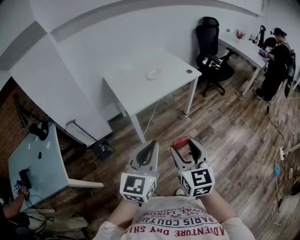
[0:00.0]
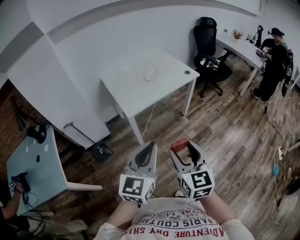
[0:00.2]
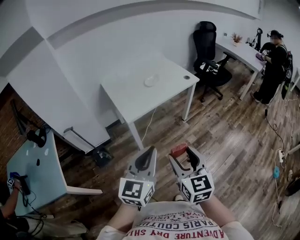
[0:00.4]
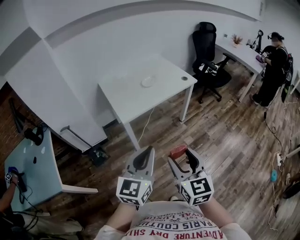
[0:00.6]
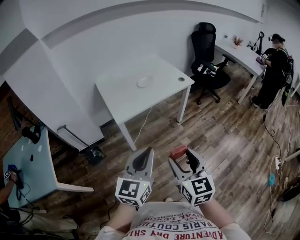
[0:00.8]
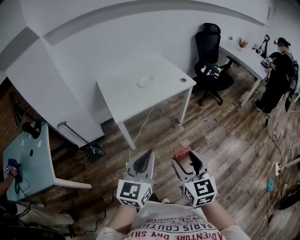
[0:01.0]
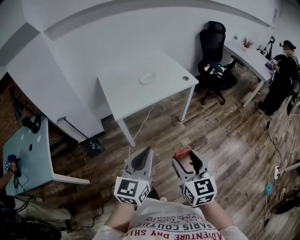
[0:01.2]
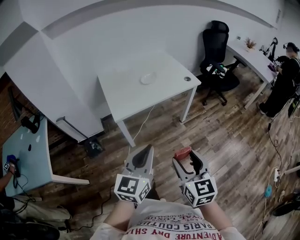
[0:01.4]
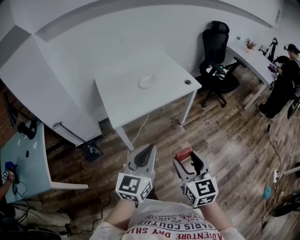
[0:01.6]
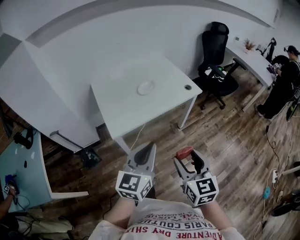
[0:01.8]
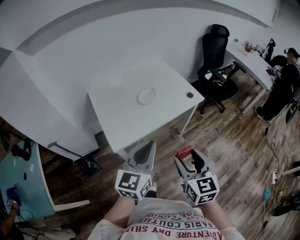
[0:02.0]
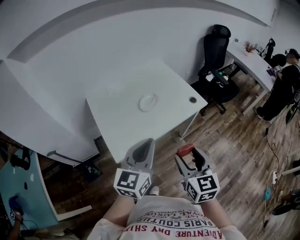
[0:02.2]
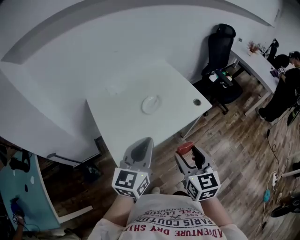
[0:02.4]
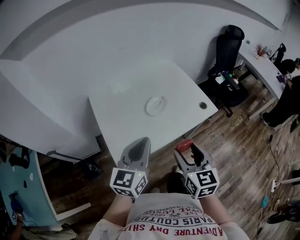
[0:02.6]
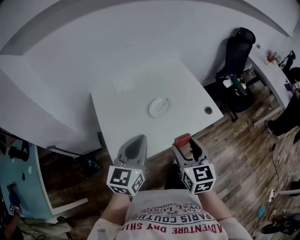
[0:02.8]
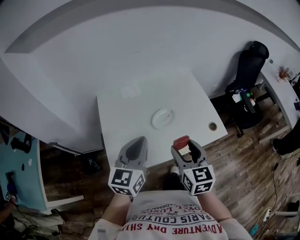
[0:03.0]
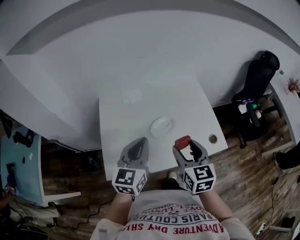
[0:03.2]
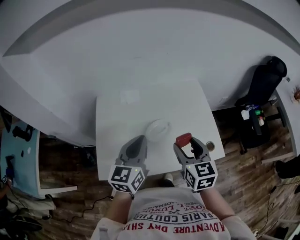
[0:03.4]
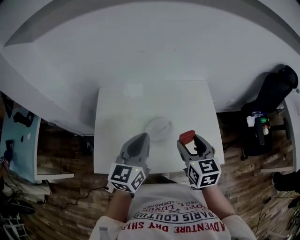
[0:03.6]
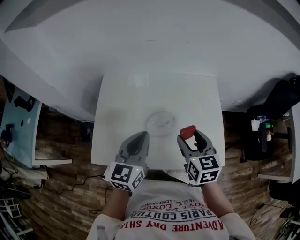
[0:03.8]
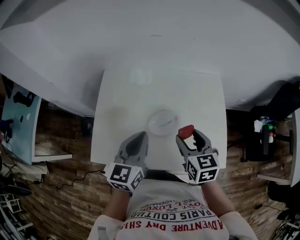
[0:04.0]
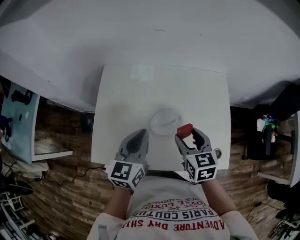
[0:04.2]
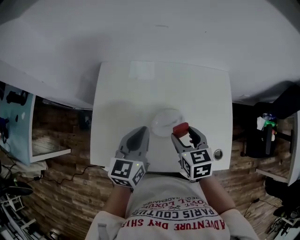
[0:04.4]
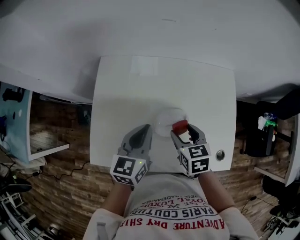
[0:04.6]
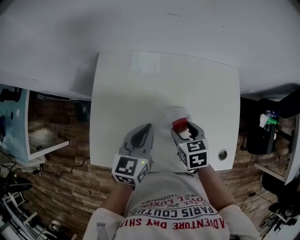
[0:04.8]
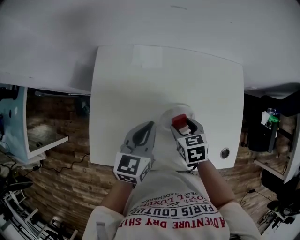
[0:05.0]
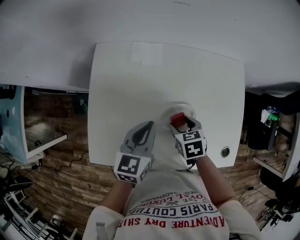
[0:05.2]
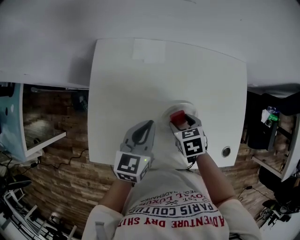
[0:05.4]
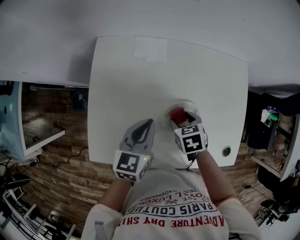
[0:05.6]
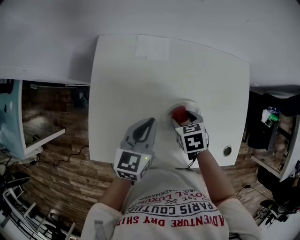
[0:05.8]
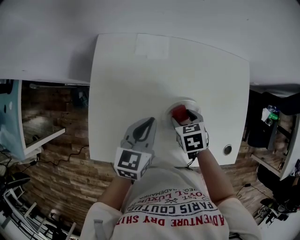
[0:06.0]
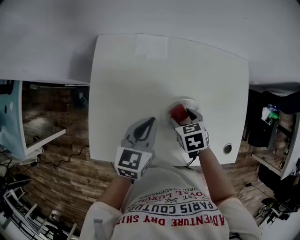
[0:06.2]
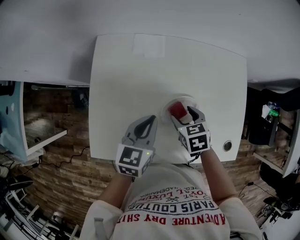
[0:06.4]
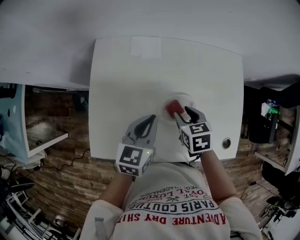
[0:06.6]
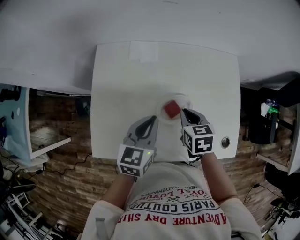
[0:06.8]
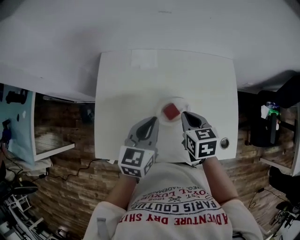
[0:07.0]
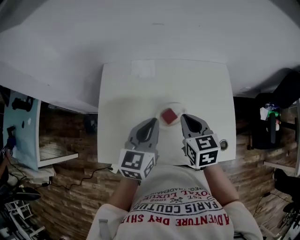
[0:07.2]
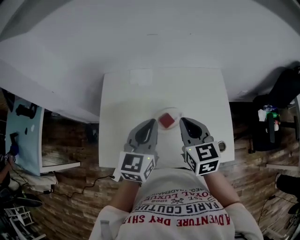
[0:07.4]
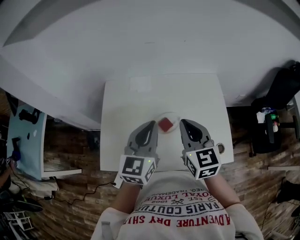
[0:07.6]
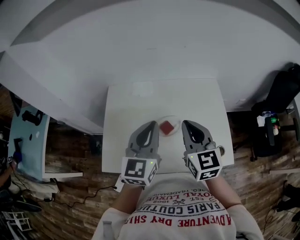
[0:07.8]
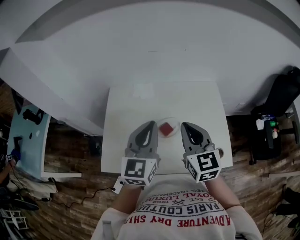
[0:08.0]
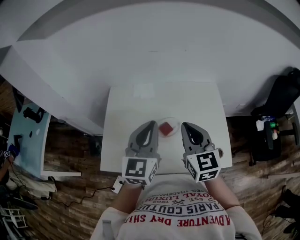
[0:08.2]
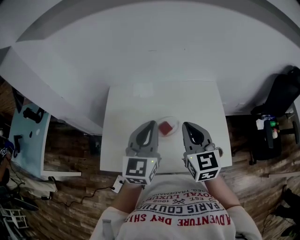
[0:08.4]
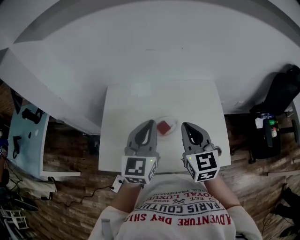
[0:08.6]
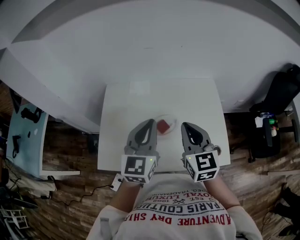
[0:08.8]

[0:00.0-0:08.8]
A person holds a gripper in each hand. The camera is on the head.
0:00.0 to 0:01.4: The left gripper travels forward and to the right by approximately 15 cm. Meanwhile the right gripper moves to the right and forward, approximately 15 cm.
0:01.4 to 0:03.0: The two grippers travel together, forward, some 50 cm.
0:03.0 to 0:04.4: Both grippers travel together forward and downward, some 20 cm. The left gripper turns by about 30 degrees; the right gripper swivels roughly 30 degrees.
0:04.4 to 0:05.8: The right gripper goes approximately 15 cm downward, and swivels approximately 30 degrees. The left gripper goes approximately 10 cm downward.
0:05.8 to 0:07.4: The left gripper is displaced upward and to the right by about 15 cm, and turns by some 20 degrees. The right gripper is displaced upward by about 25 cm, angles its fingers upward, by approximately 40 degrees, and closes its fingers.
0:07.4 to 0:08.8: The left gripper ends up about 5 cm from where it was, while the right gripper changes place by some 5 cm.

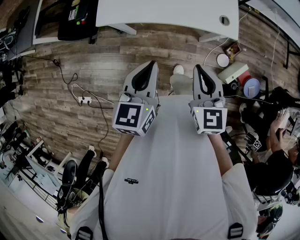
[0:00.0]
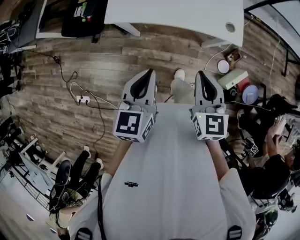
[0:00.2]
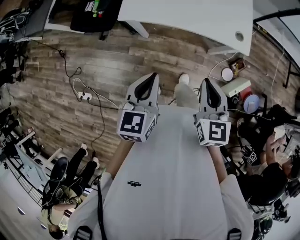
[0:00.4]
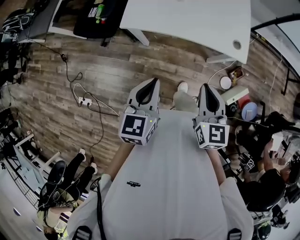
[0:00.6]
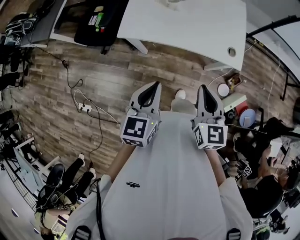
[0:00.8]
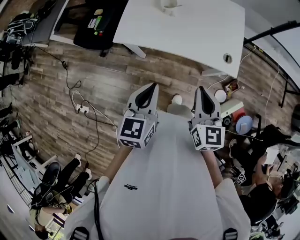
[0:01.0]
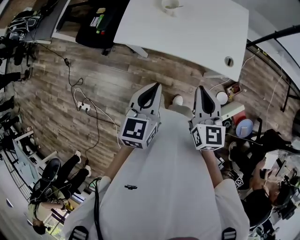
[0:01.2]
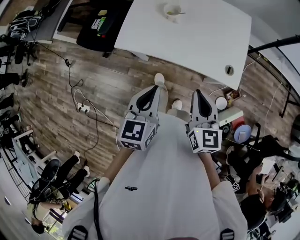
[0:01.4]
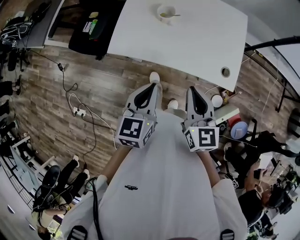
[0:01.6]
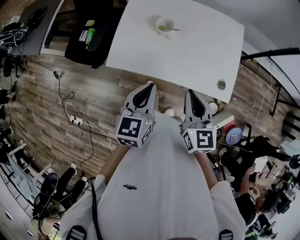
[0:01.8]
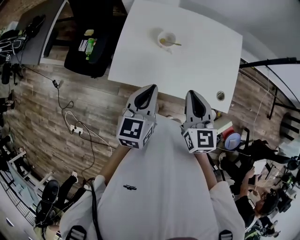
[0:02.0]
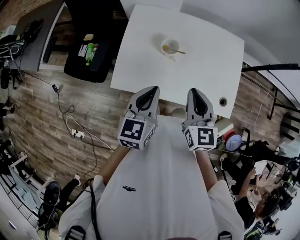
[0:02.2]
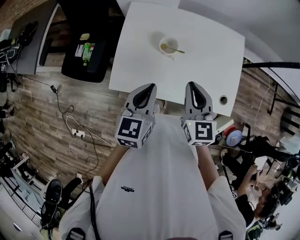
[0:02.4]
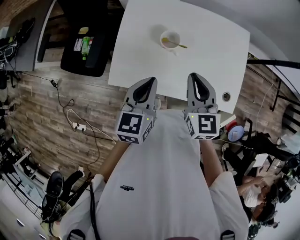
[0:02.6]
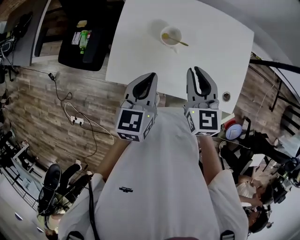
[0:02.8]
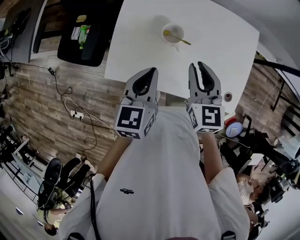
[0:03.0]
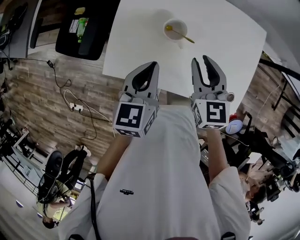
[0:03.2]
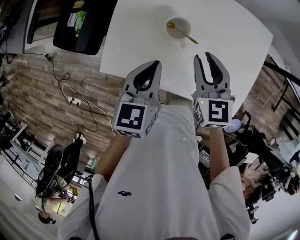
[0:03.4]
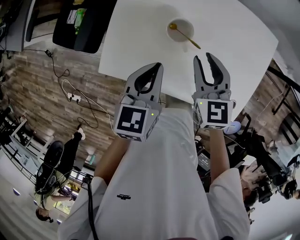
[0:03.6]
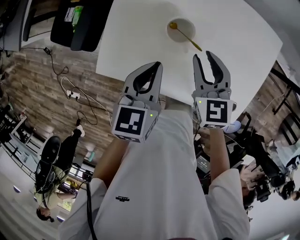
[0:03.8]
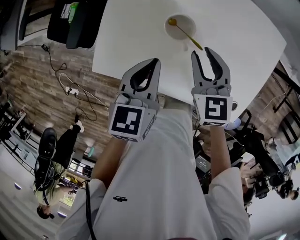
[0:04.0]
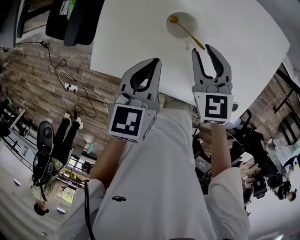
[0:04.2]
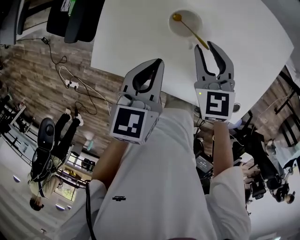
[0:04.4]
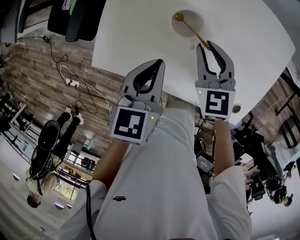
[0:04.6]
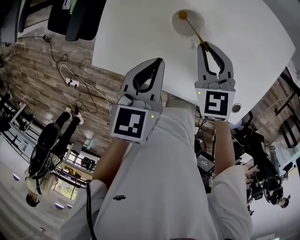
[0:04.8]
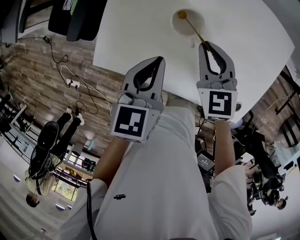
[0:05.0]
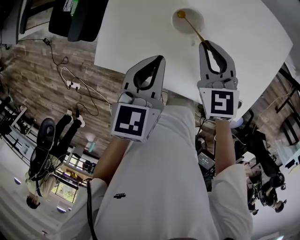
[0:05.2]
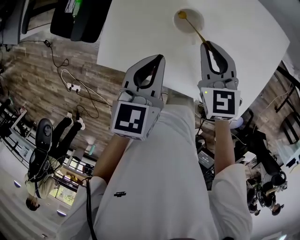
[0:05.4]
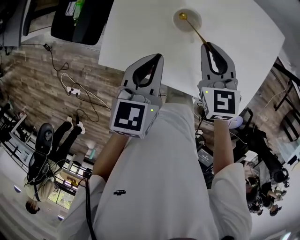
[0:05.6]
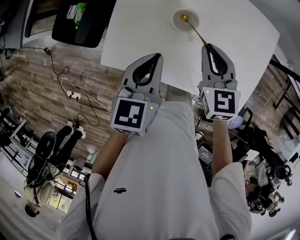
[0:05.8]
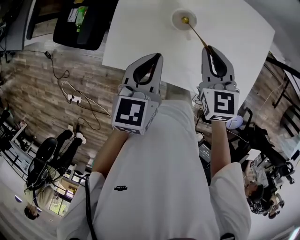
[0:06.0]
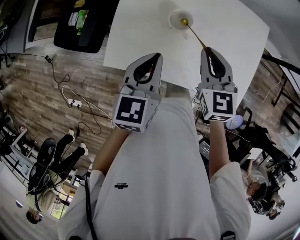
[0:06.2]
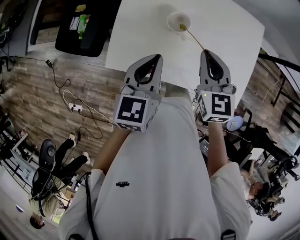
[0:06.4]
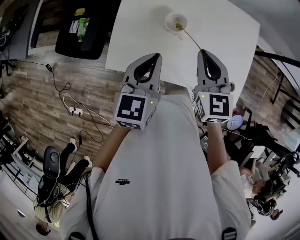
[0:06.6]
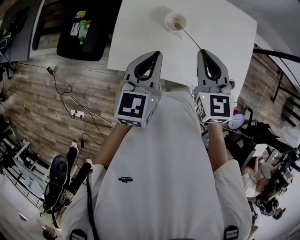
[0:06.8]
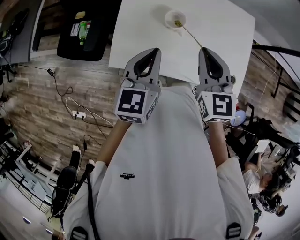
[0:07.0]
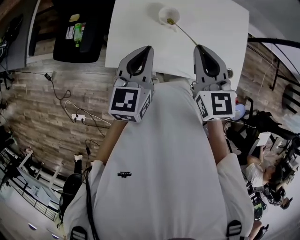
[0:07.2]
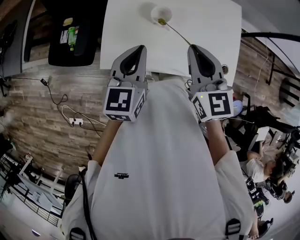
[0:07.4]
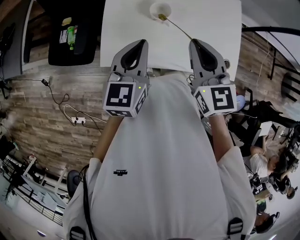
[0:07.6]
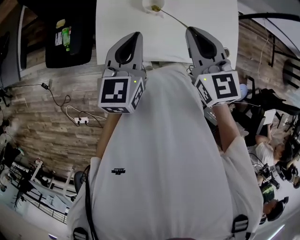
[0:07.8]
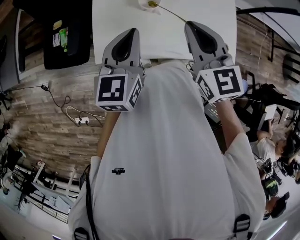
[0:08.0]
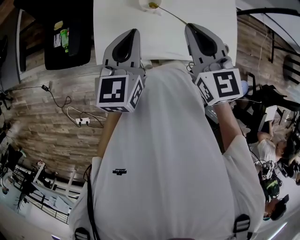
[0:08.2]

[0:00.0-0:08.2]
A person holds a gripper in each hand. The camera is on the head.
0:00.0 to 0:01.6: The two grippers go roughly 10 cm forward.
0:01.6 to 0:03.2: The two grippers go about 25 cm forward. The right gripper opens.
0:03.2 to 0:05.0: Both grippers move downward, about 10 cm.
0:05.0 to 0:06.6: The right gripper moves upward and backward, approximately 15 cm; the left gripper is displaced upward by about 10 cm.
0:06.6 to 0:08.2: The right gripper goes roughly 5 cm upward.

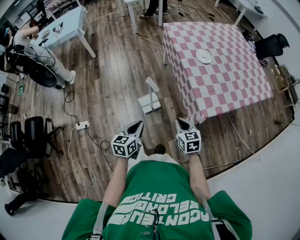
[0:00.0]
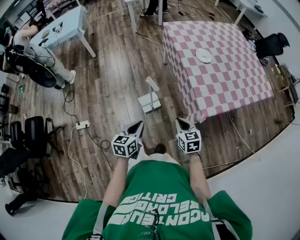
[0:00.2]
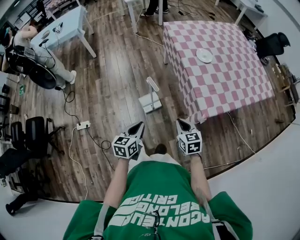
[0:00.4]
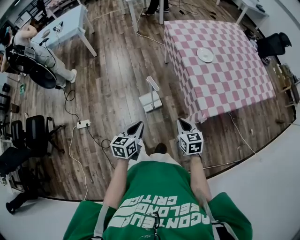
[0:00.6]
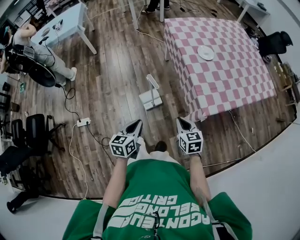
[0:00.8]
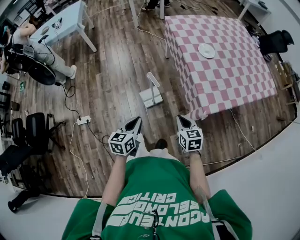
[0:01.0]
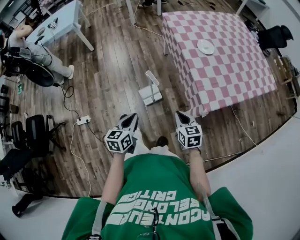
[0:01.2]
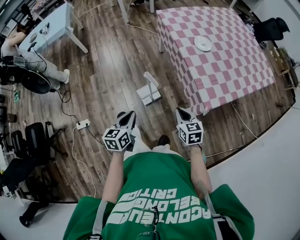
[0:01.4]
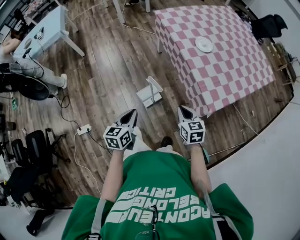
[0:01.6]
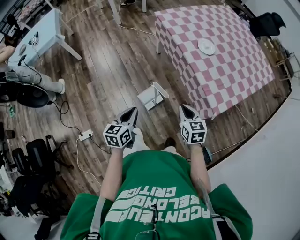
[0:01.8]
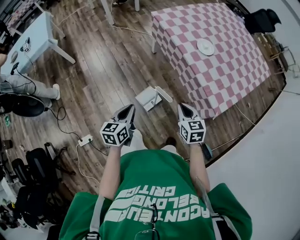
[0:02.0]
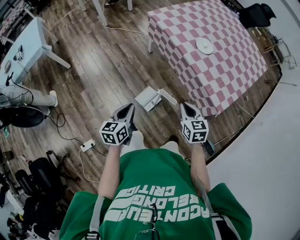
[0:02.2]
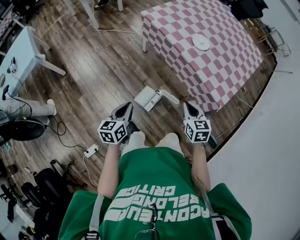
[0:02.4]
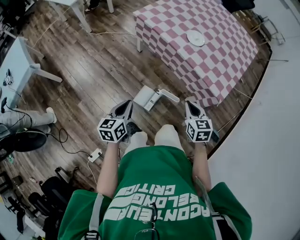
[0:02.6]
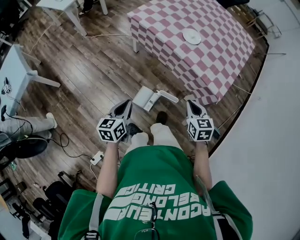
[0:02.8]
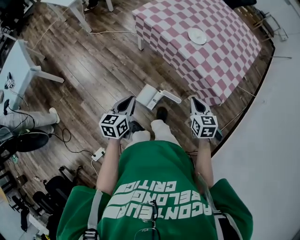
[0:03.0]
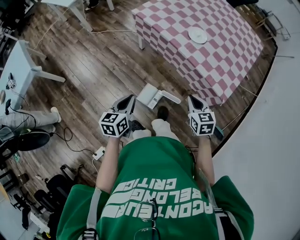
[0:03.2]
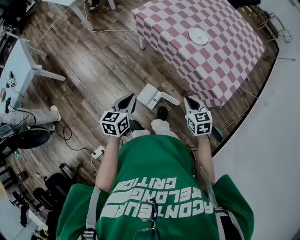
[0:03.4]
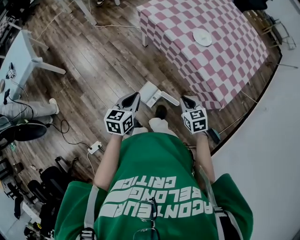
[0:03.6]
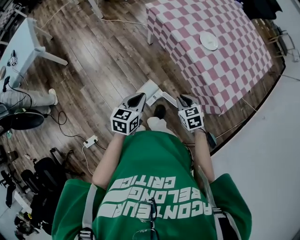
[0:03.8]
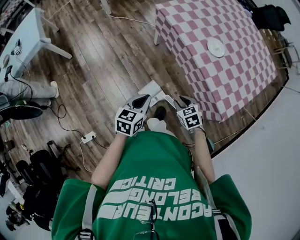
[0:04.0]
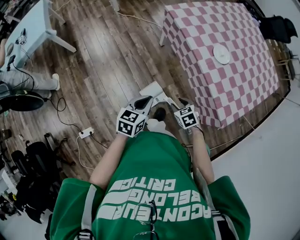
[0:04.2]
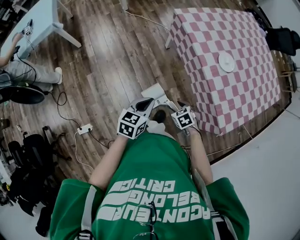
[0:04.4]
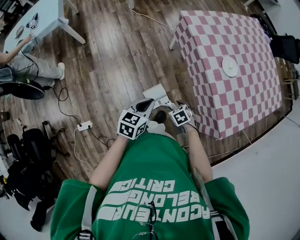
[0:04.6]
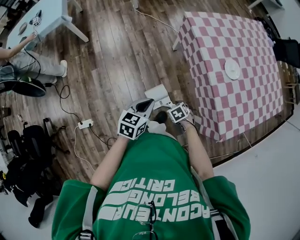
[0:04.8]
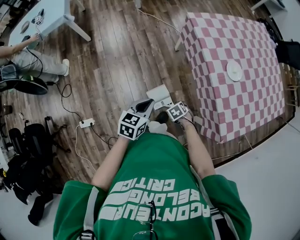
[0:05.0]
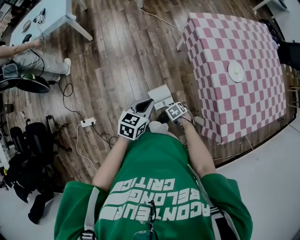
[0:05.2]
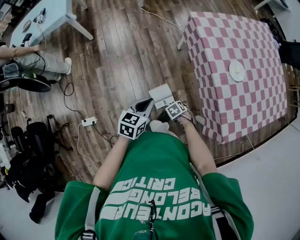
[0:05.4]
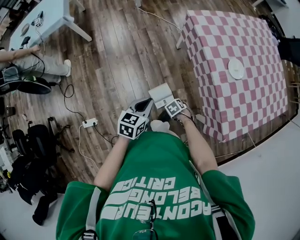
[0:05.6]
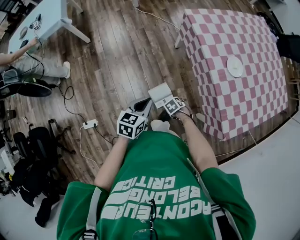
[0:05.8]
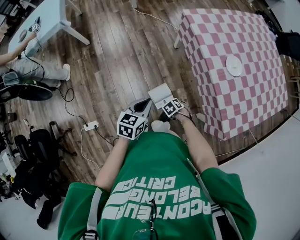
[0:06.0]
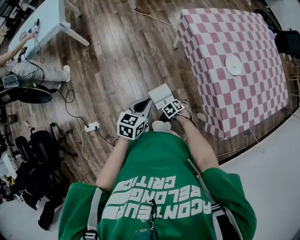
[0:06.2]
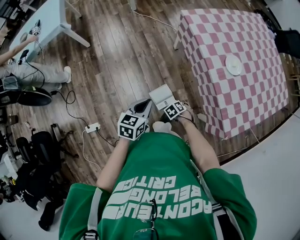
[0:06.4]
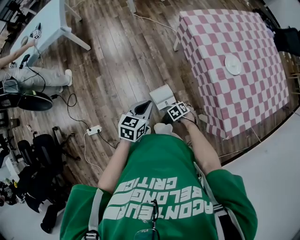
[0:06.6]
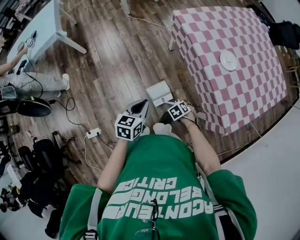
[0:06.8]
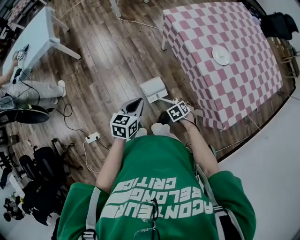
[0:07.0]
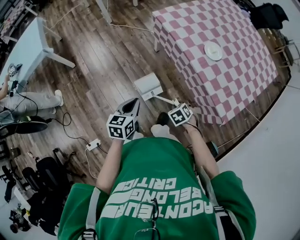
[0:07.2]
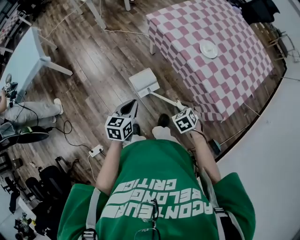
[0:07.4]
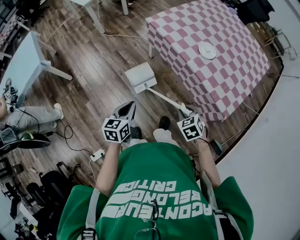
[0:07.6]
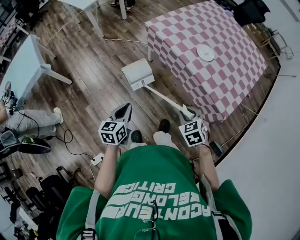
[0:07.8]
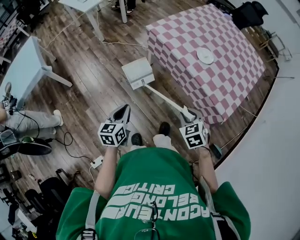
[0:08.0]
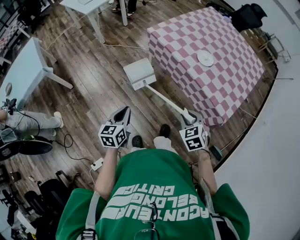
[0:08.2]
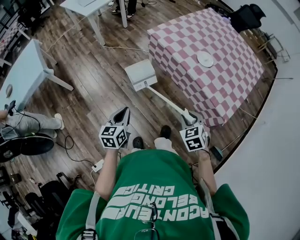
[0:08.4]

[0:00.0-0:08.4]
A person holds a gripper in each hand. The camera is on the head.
0:00.0 to 0:01.4: The left gripper heads forward and to the left, covering approximately 10 cm.
0:01.4 to 0:02.8: The right gripper ends up roughly 20 cm from where it was, and turns by roughly 30 degrees; the left gripper shifts by about 30 cm, and changes its angle by approximately 30 degrees.
0:02.8 to 0:04.2: The left gripper shifts about 5 cm to the right, while the right gripper shifts about 15 cm downward and to the left, swivels about 50 degrees, and opens up.
0:04.2 to 0:05.6: The right gripper moves downward, about 15 cm, and swivels some 30 degrees.
0:05.6 to 0:07.0: The right gripper travels upward by roughly 10 cm, and closes its fingers.
0:07.0 to 0:08.4: The right gripper heads upward, covering about 25 cm, and changes its angle by roughly 30 degrees. The left gripper changes place by approximately 10 cm.
